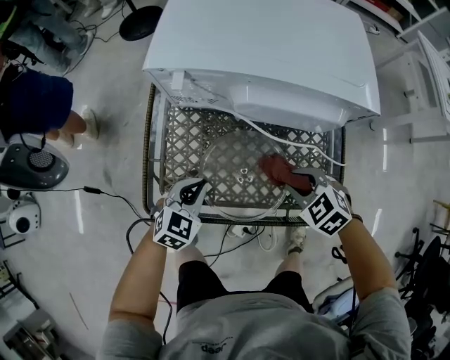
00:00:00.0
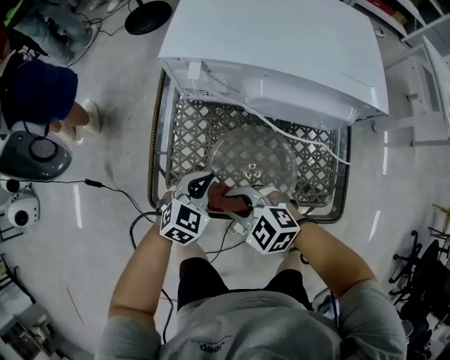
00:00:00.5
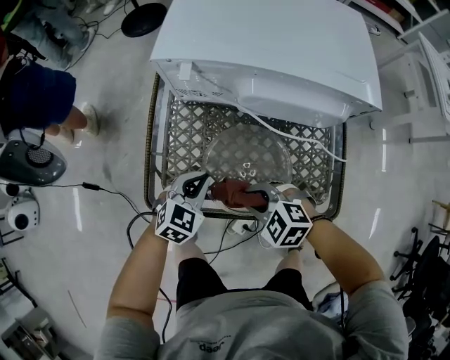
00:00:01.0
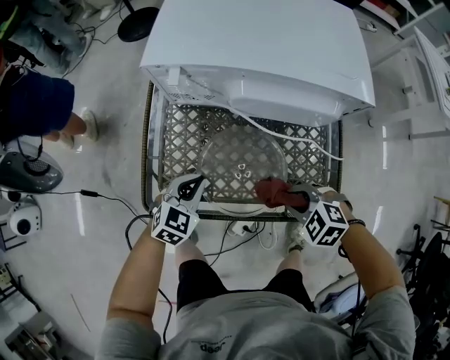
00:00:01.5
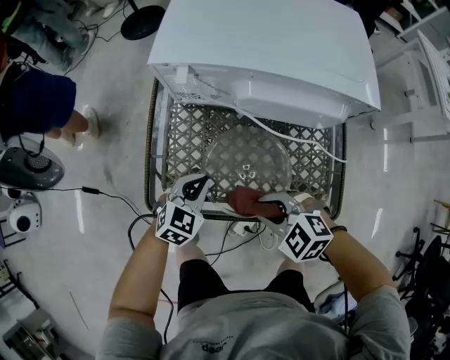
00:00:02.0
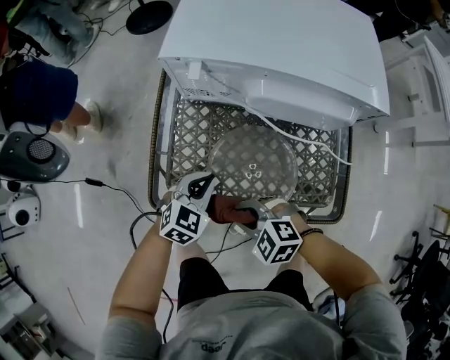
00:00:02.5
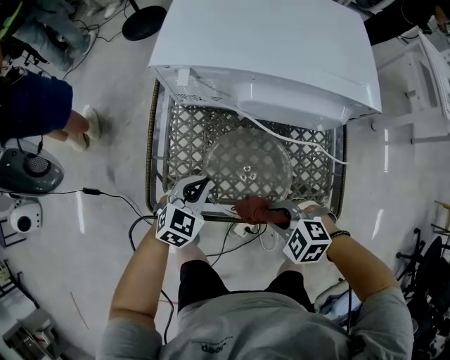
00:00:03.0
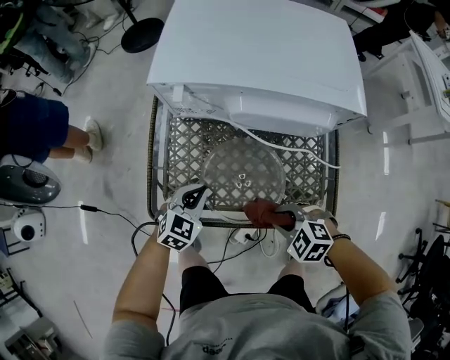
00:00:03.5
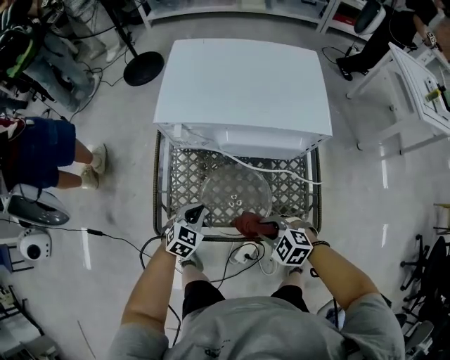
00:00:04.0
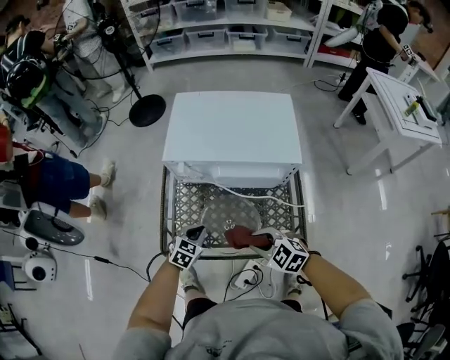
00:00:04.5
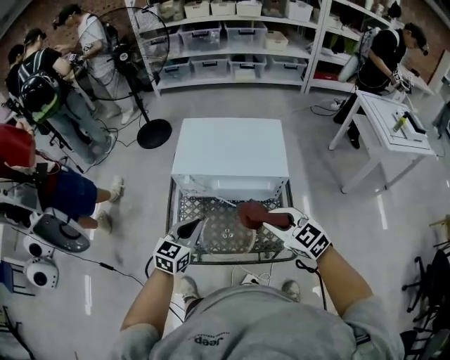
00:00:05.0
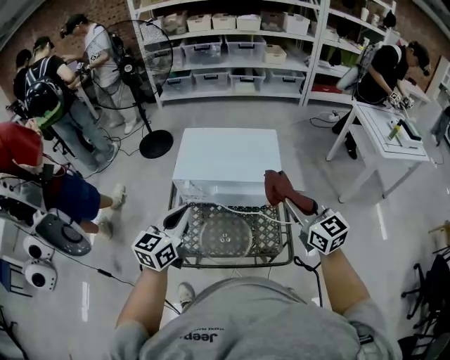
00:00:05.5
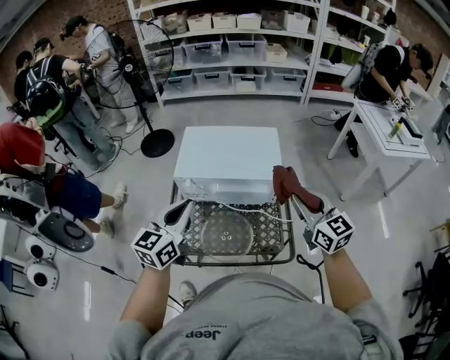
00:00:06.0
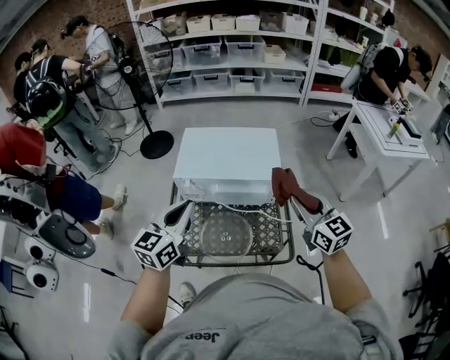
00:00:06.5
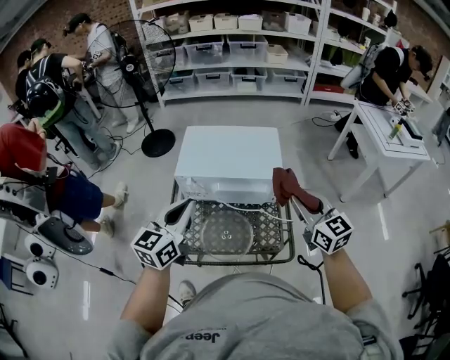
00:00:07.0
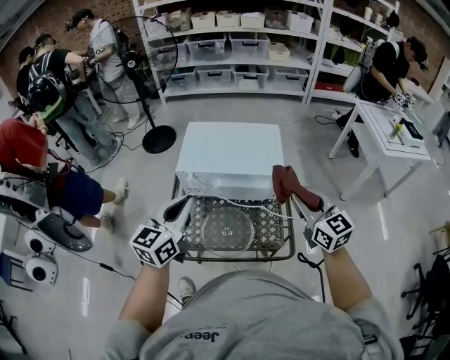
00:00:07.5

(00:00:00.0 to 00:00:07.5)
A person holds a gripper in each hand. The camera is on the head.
00:00:00.0 - 00:00:02.0: The right gripper goes left and right, roughly 20 cm each way, reversing 2 times, and turns by about 20 degrees.
00:00:02.0 - 00:00:04.0: The right gripper moves roughly 5 cm.
00:00:04.0 - 00:00:05.5: The two grippers go roughly 40 cm upward. The left gripper points its fingers some 40 degrees further upward; the right gripper points its fingers approximately 50 degrees further upward.
00:00:05.5 - 00:00:07.5: The grippers make only small movements.

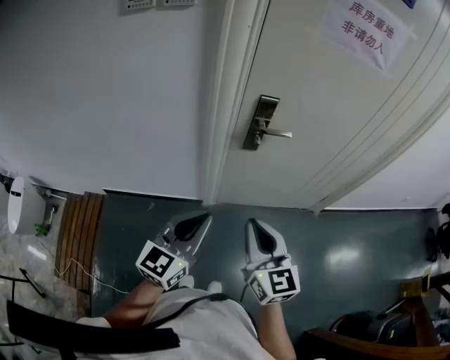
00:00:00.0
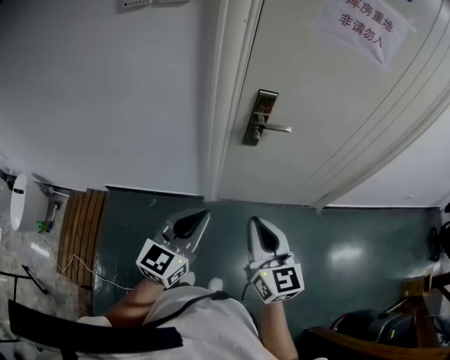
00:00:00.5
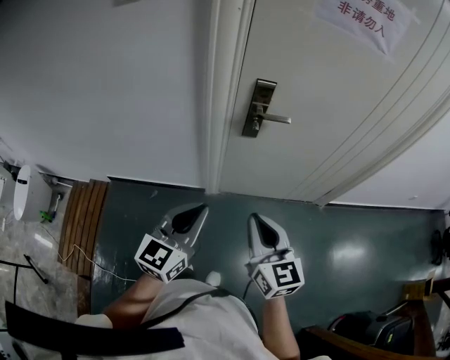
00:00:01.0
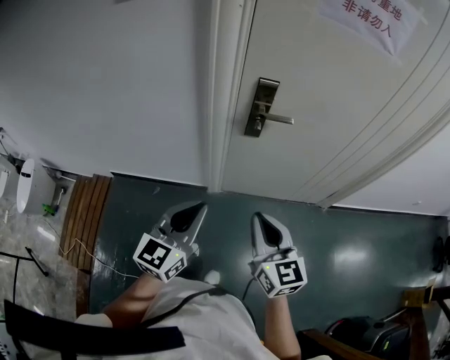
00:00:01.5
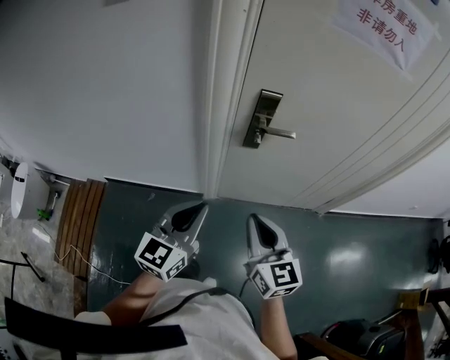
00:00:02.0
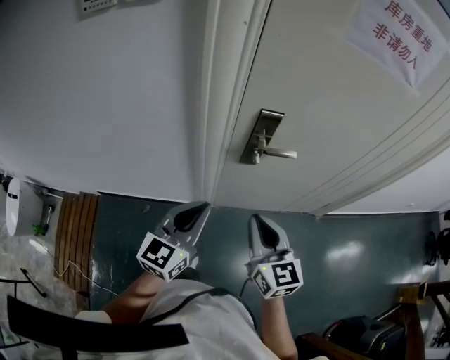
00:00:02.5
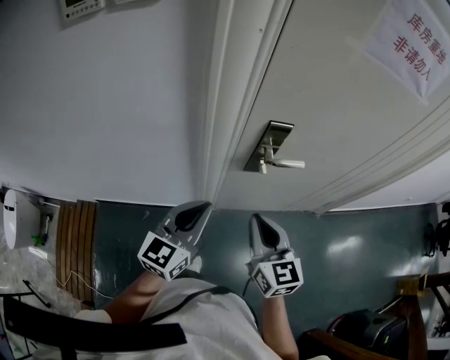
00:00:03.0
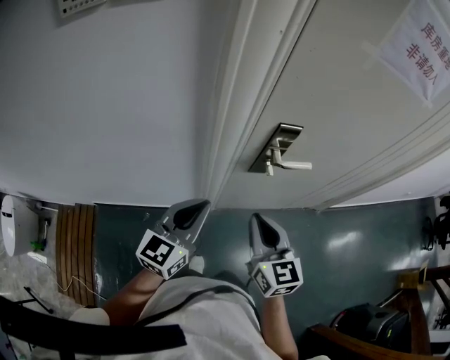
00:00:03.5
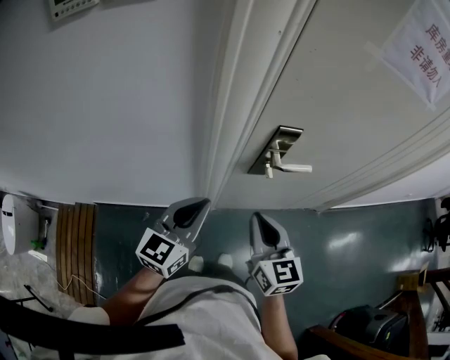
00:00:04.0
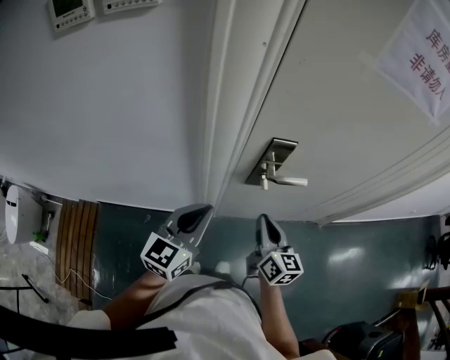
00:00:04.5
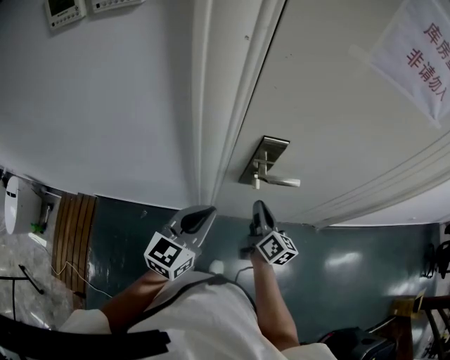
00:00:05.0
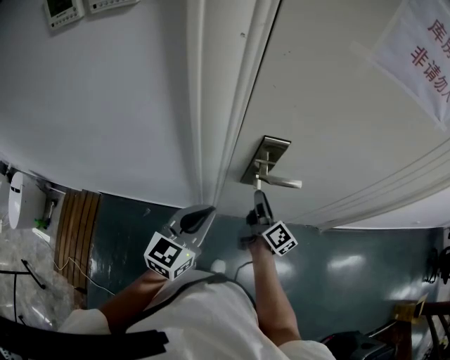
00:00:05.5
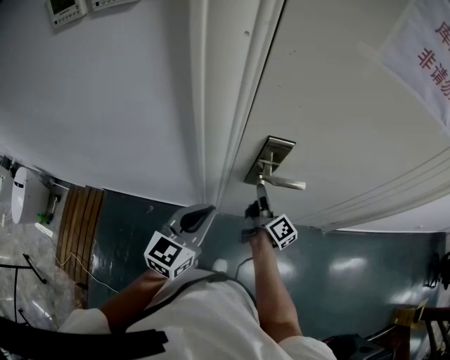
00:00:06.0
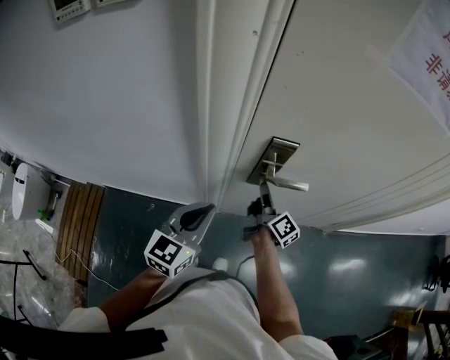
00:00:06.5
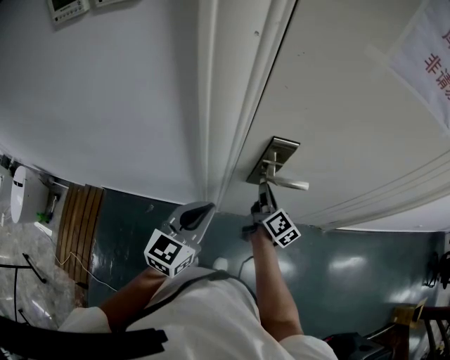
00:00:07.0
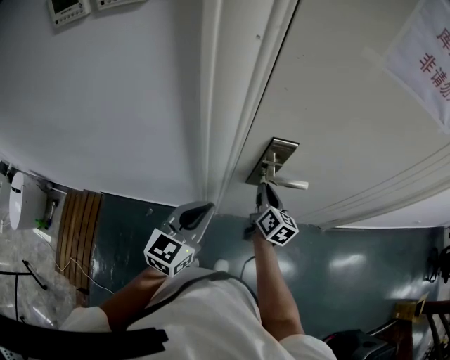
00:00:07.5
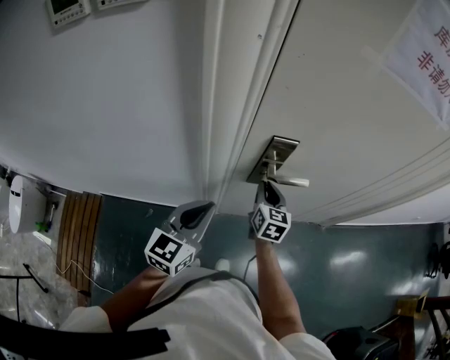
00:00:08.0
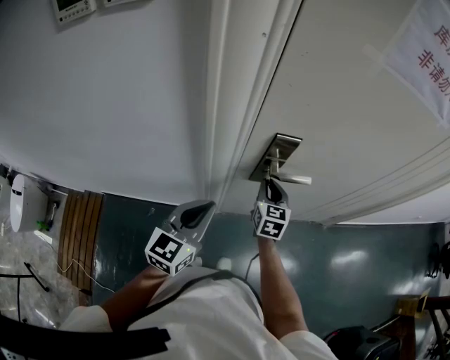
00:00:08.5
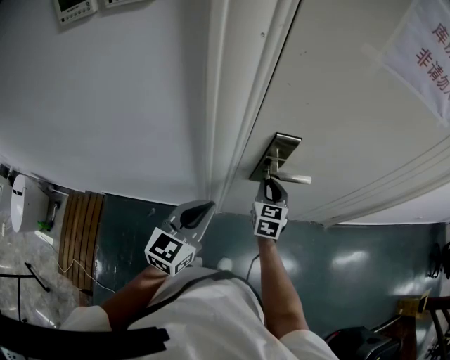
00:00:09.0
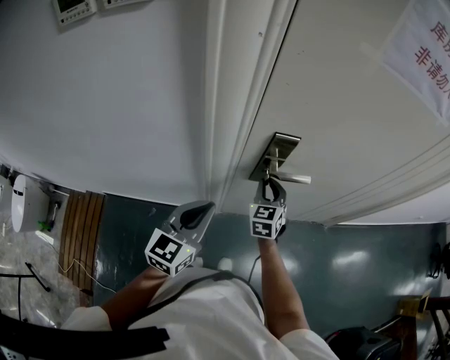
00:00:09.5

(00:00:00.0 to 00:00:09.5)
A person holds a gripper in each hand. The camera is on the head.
00:00:00.0 - 00:00:02.0: Both grippers travel together forward, approximately 5 cm.
00:00:02.0 - 00:00:04.0: Both grippers travel together forward and to the left, approximately 20 cm.
00:00:04.0 - 00:00:05.5: The left gripper goes roughly 5 cm to the right; the right gripper goes roughly 20 cm forward, downward and to the right, twists some 50 degrees clockwise, seen from behind, and opens up.
00:00:05.5 - 00:00:07.5: The right gripper changes its angle by some 30 degrees.
00:00:07.5 - 00:00:09.5: The right gripper twists some 50 degrees counterclockwise, seen from behind.

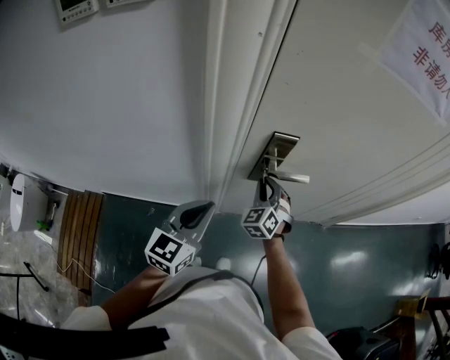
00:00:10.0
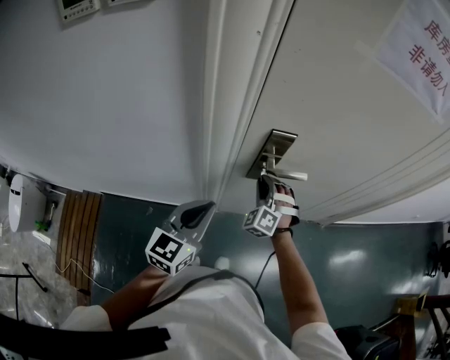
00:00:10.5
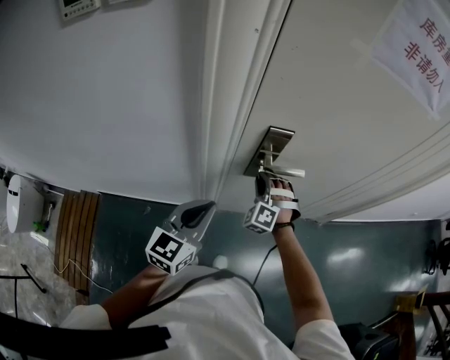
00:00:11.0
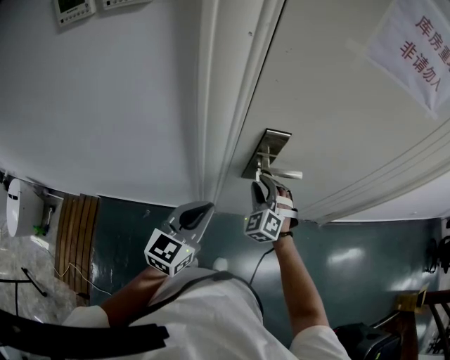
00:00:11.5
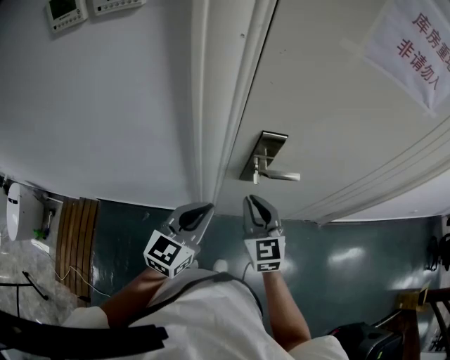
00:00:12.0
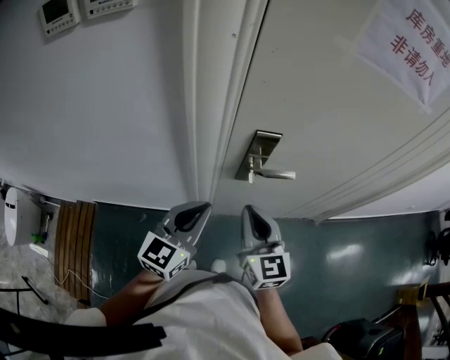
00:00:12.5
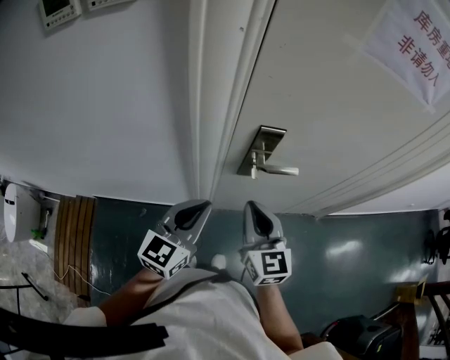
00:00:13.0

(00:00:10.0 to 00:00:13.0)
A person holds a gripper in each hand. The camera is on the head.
00:00:11.5 - 00:00:13.0: The right gripper heads backward and upward, covering about 15 cm, twists approximately 60 degrees clockwise, seen from behind, and closes.

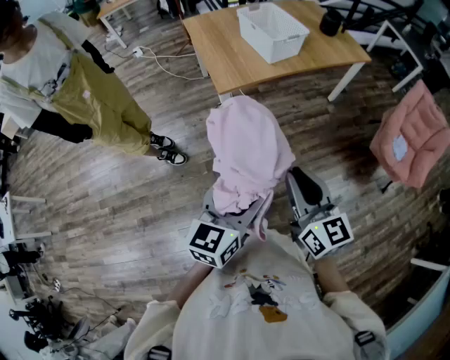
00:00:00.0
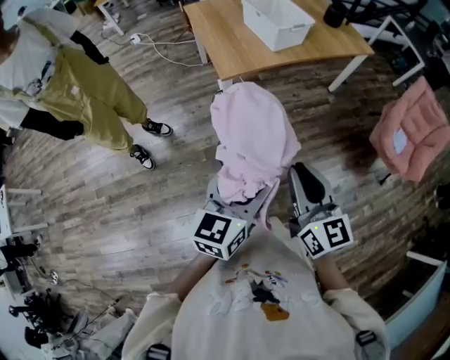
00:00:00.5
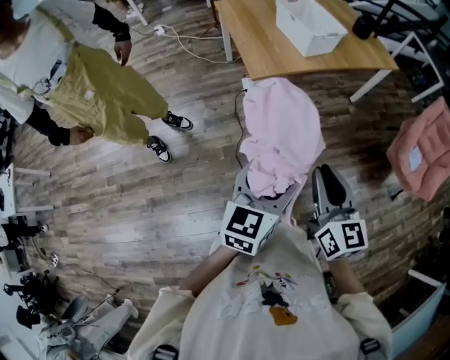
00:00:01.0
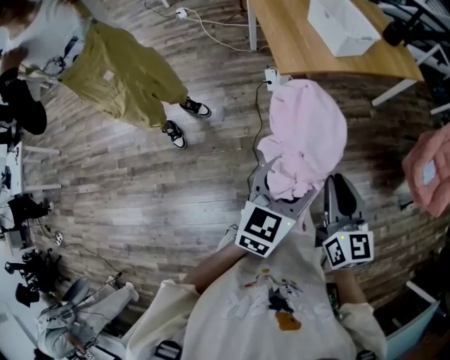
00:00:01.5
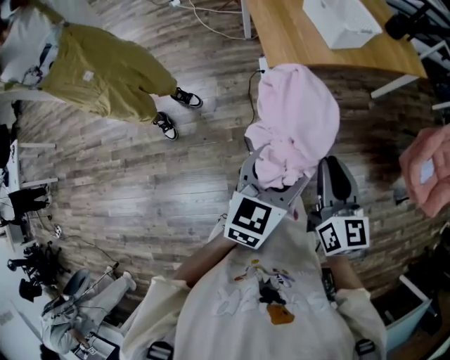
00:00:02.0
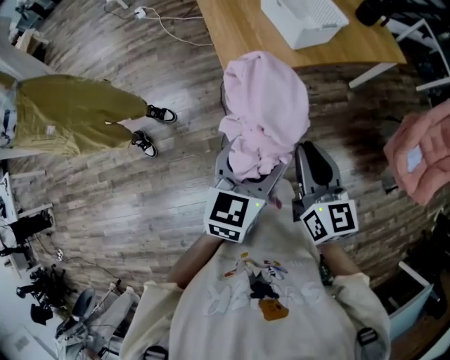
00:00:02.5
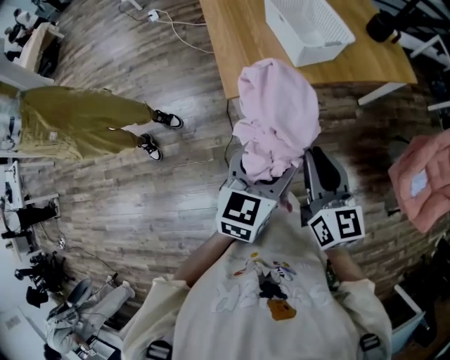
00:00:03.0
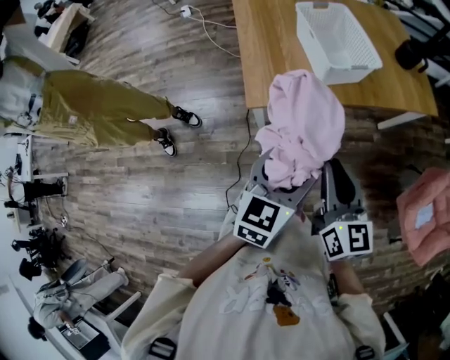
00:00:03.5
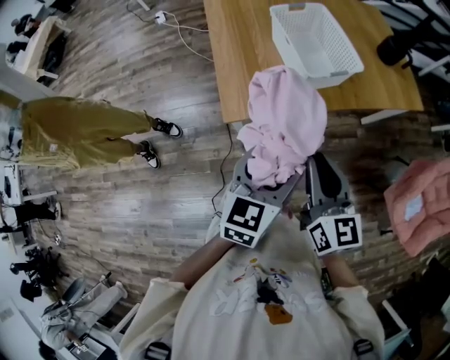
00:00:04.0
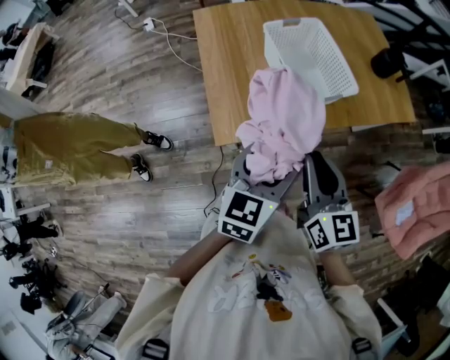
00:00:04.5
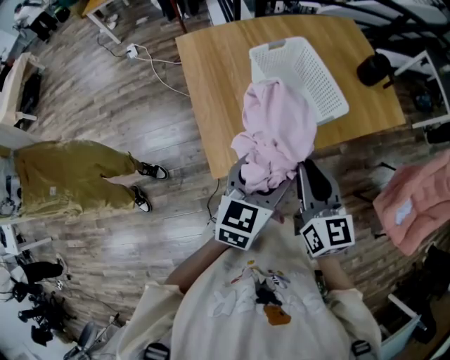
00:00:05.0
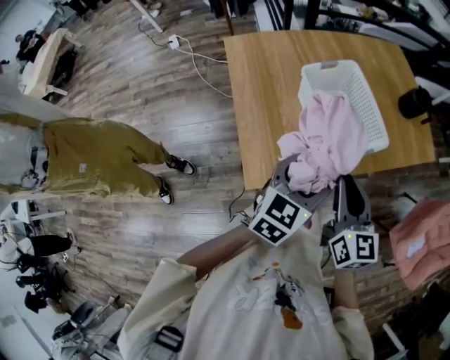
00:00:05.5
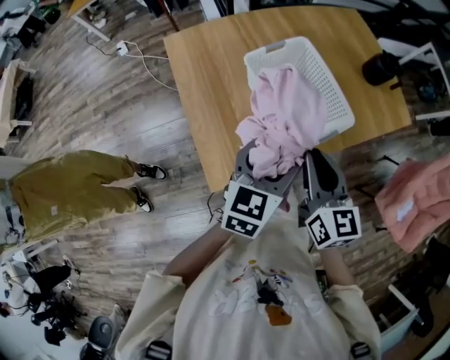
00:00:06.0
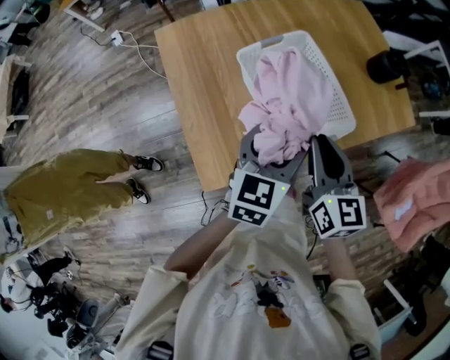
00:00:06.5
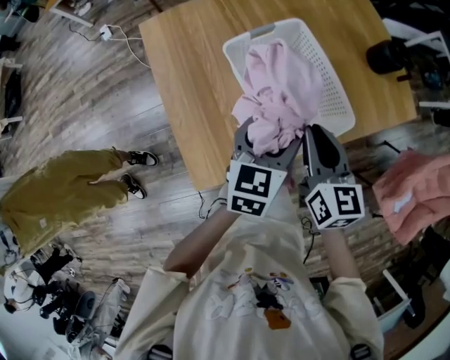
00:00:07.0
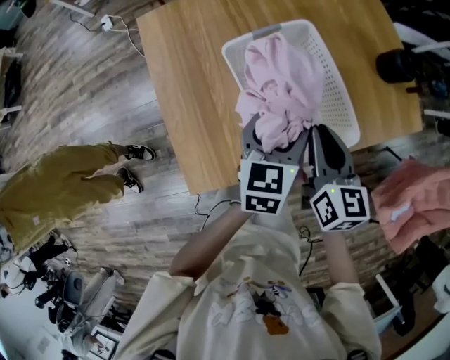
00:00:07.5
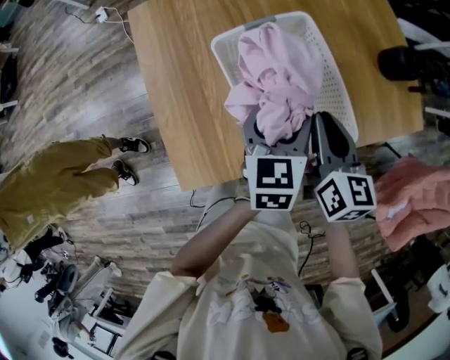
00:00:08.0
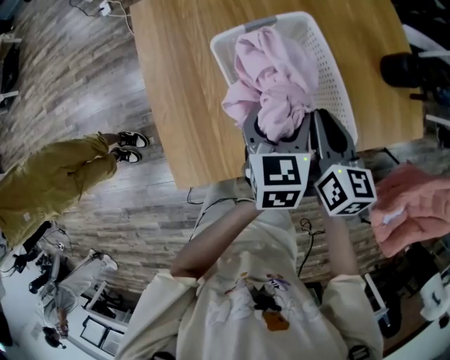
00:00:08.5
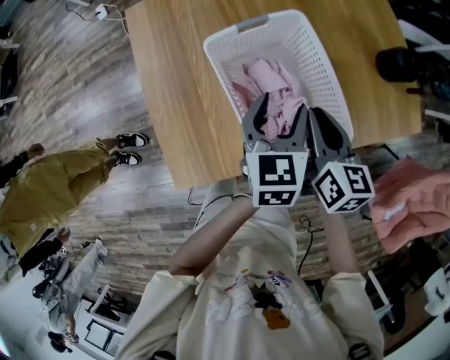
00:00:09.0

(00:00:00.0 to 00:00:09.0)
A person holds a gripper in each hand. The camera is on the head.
00:00:00.0 - 00:00:02.0: The grippers both shift forward and to the left by some 10 cm.
00:00:02.0 - 00:00:04.5: The two grippers go roughly 40 cm forward.
00:00:04.5 - 00:00:07.0: Both grippers move forward, some 25 cm.
00:00:07.0 - 00:00:09.0: The right gripper moves forward, downward and to the right, some 10 cm. Meanwhile the left gripper heads forward, covering about 5 cm.
